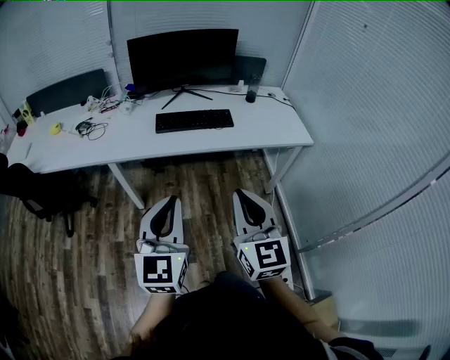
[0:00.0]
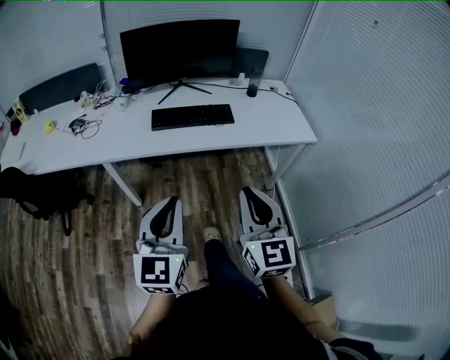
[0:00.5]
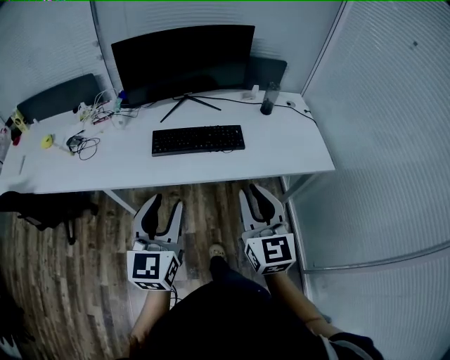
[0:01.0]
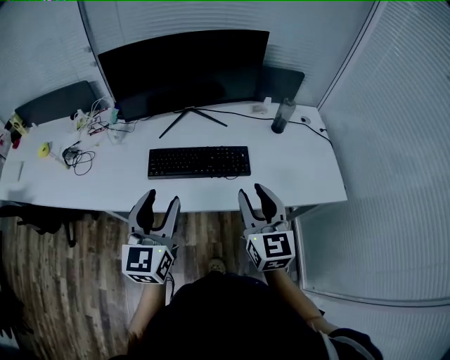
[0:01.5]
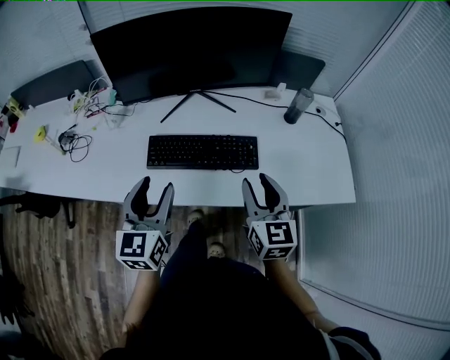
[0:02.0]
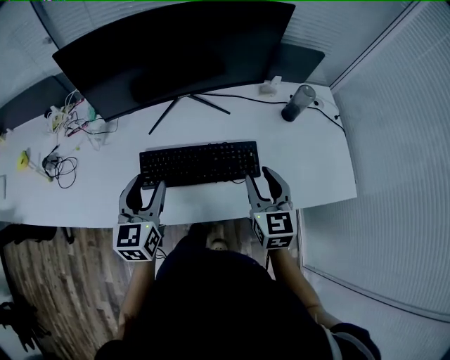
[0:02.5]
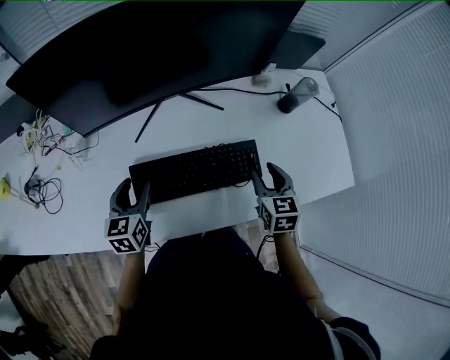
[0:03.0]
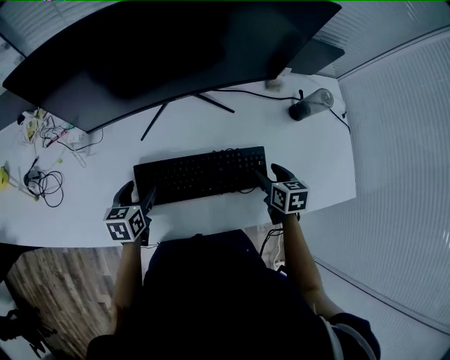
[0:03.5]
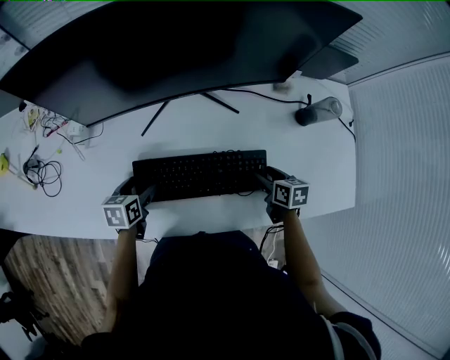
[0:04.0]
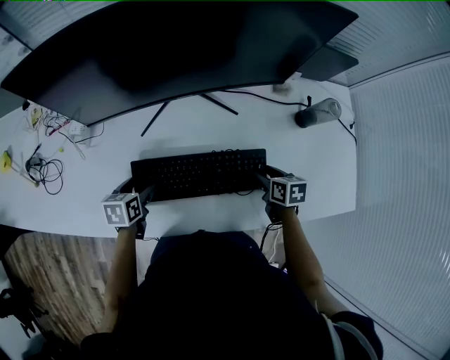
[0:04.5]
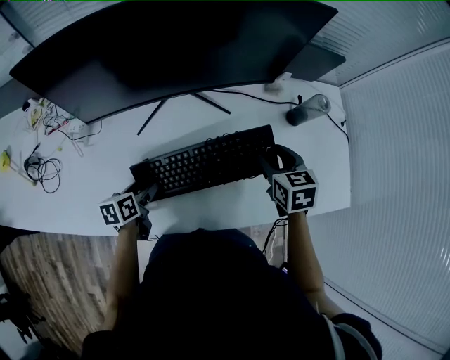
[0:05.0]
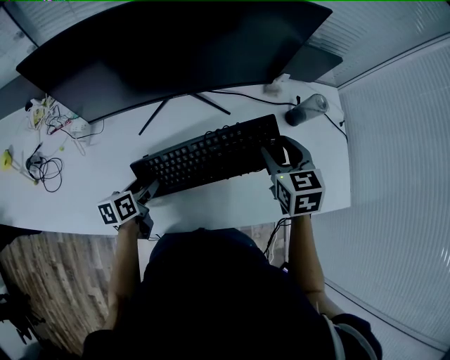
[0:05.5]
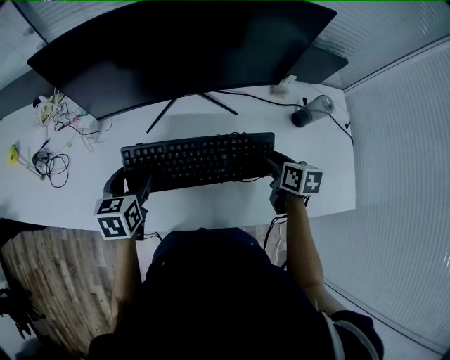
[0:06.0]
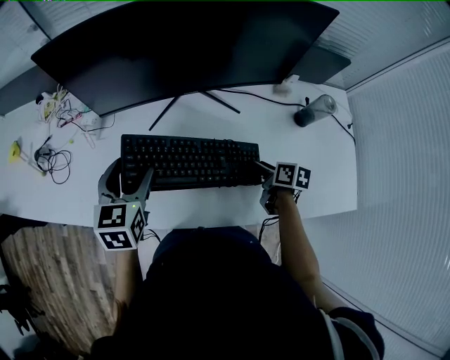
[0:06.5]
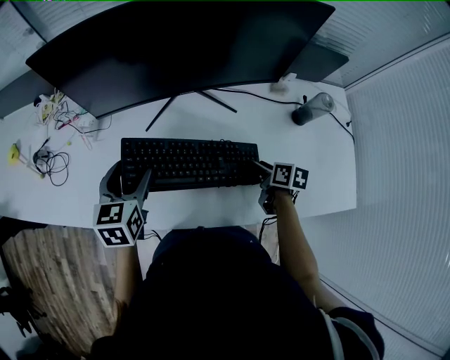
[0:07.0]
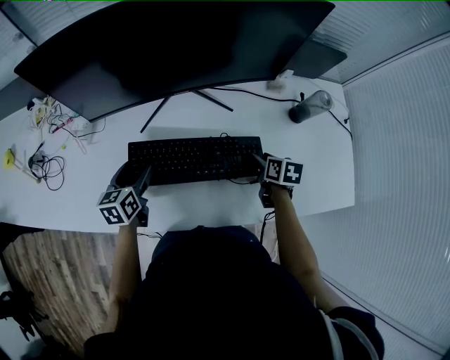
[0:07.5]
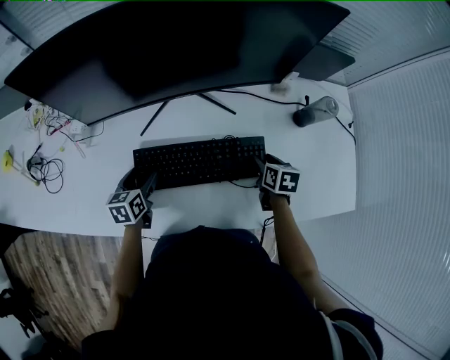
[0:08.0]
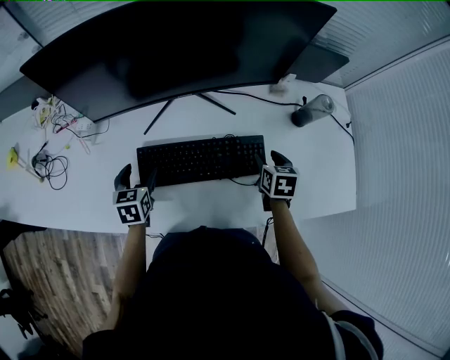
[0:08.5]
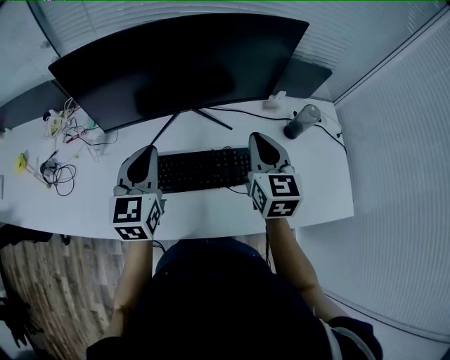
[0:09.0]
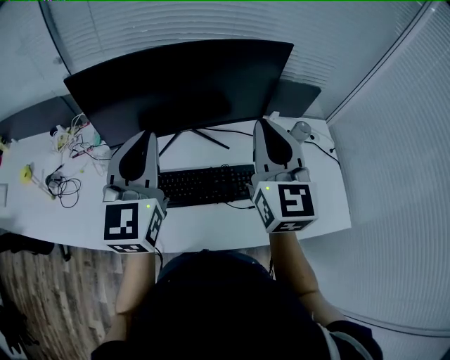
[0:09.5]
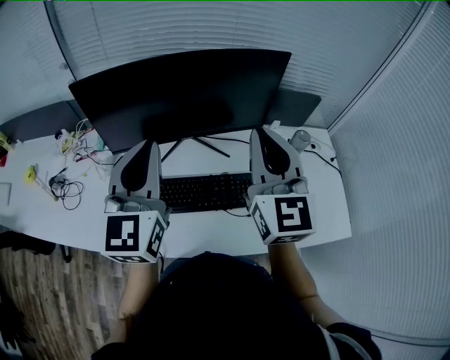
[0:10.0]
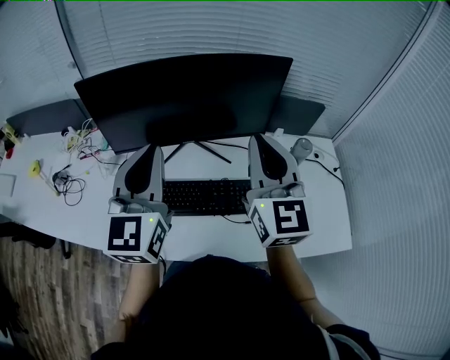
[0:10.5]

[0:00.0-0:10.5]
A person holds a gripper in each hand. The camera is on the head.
0:00.0 to 0:02.0: The two grippers travel together, forward, roughly 40 cm. The right gripper opens its fingers, while the left gripper opens up.
0:02.0 to 0:04.0: The right gripper is displaced downward and forward by some 30 cm, angles its fingers downward, by some 40 degrees, and opens, while the left gripper goes roughly 35 cm downward, forward and to the left, and tilts its fingers approximately 40 degrees downward.
0:04.0 to 0:06.5: The right gripper travels upward and back again, approximately 20 cm each way. The left gripper is displaced upward by some 20 cm, and rotates approximately 30 degrees.
0:06.5 to 0:08.5: The right gripper changes place by approximately 5 cm, and swivels roughly 40 degrees, while the left gripper is displaced downward by about 15 cm.
0:08.5 to 0:10.5: Both grippers move upward, roughly 40 cm. The right gripper angles its fingers upward, by about 60 degrees, and closes up. Meanwhile the left gripper tilts its fingers approximately 50 degrees upward, and closes its fingers.

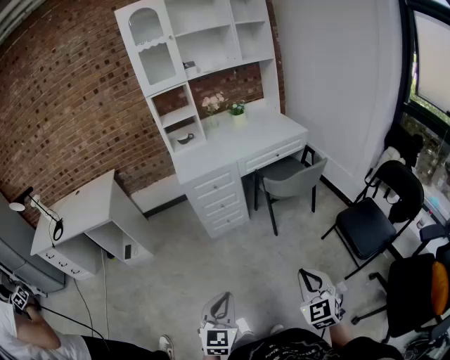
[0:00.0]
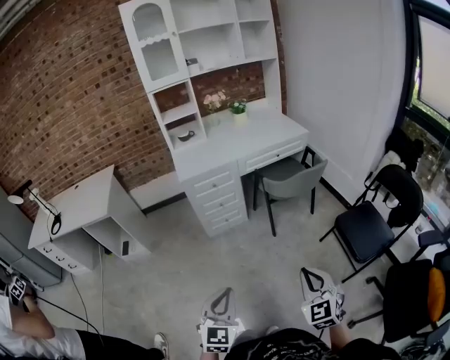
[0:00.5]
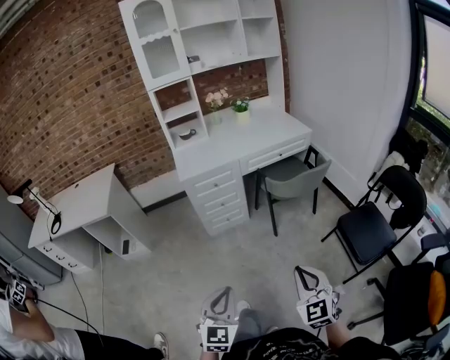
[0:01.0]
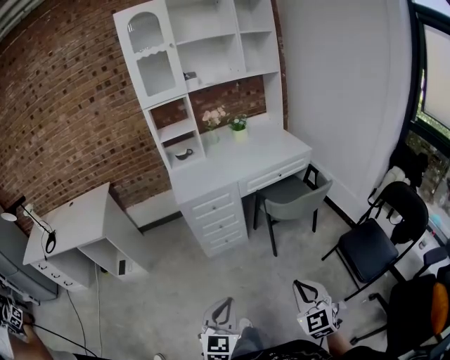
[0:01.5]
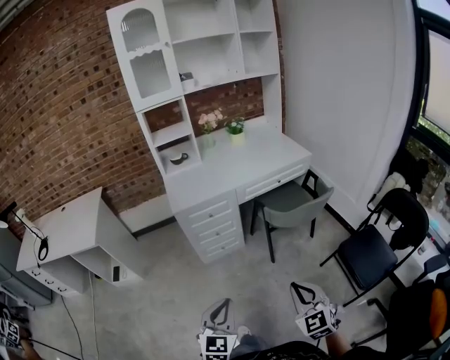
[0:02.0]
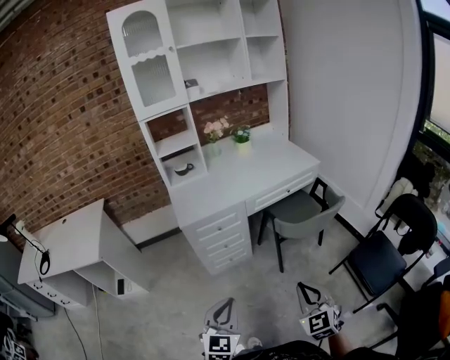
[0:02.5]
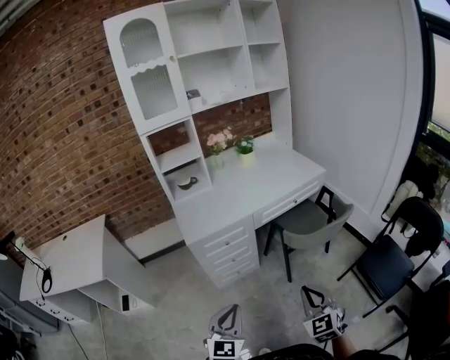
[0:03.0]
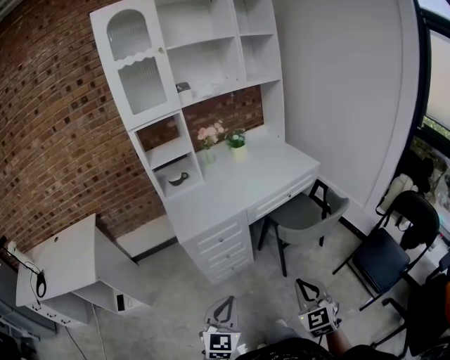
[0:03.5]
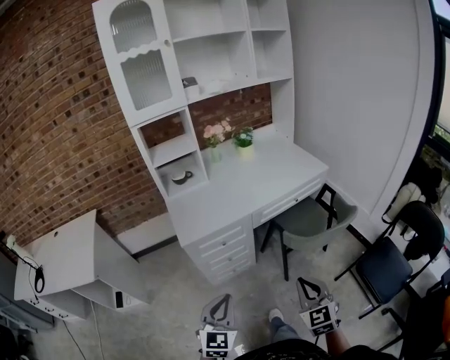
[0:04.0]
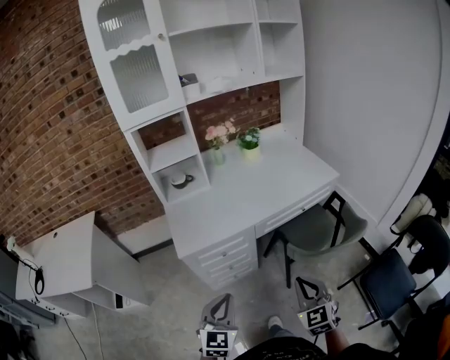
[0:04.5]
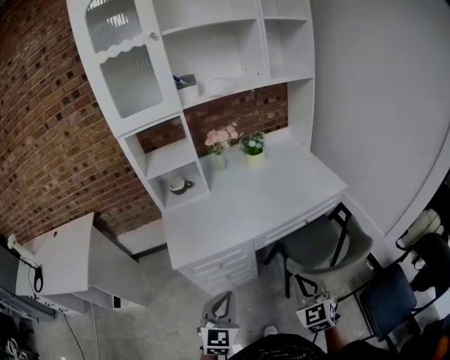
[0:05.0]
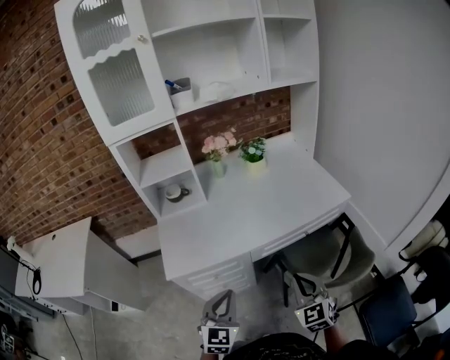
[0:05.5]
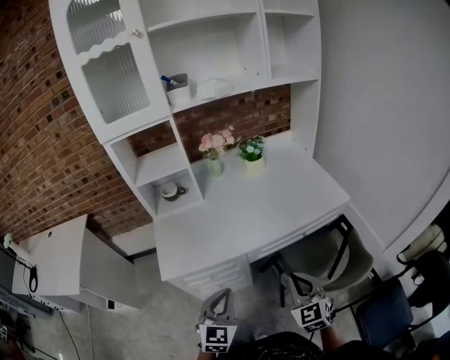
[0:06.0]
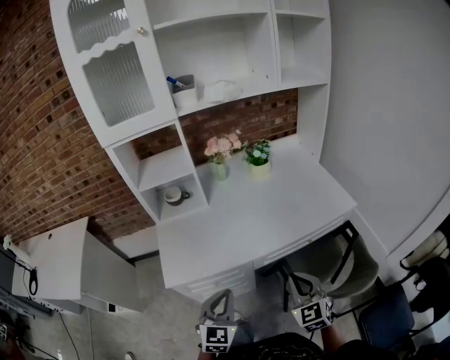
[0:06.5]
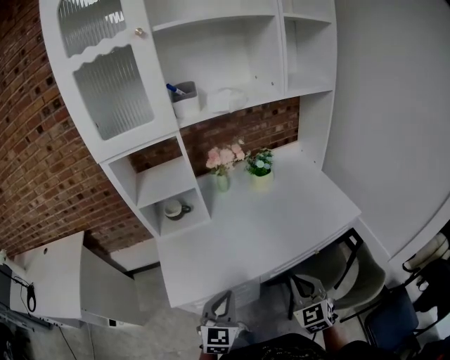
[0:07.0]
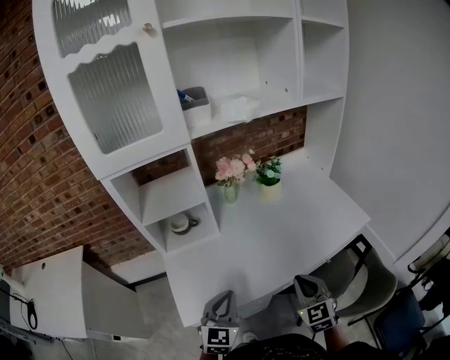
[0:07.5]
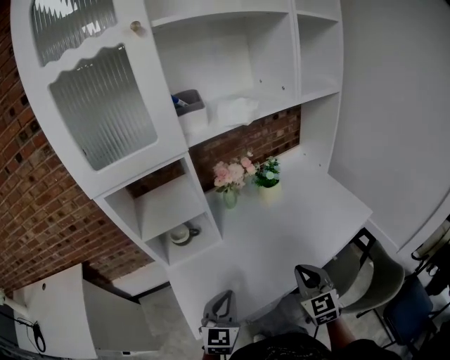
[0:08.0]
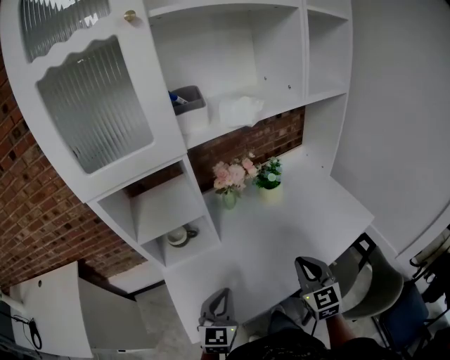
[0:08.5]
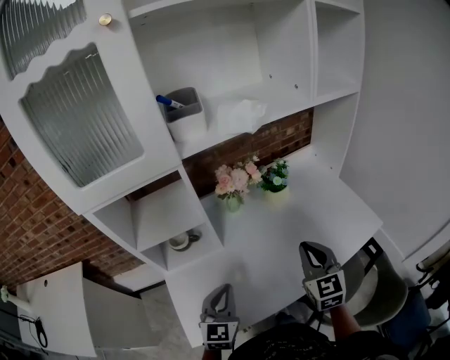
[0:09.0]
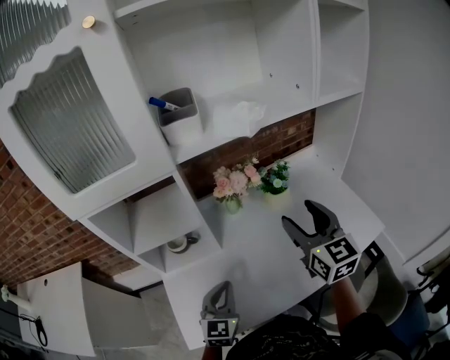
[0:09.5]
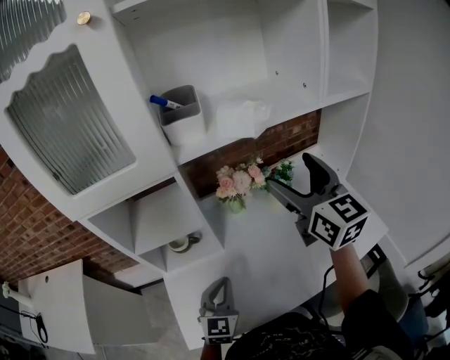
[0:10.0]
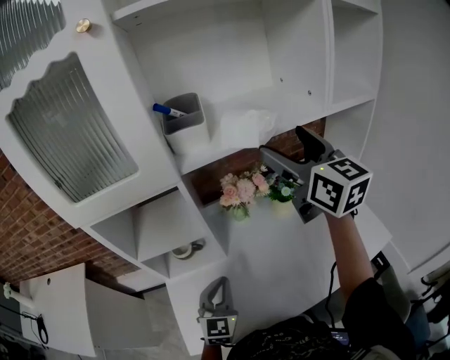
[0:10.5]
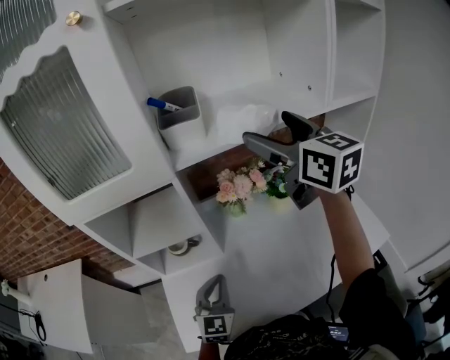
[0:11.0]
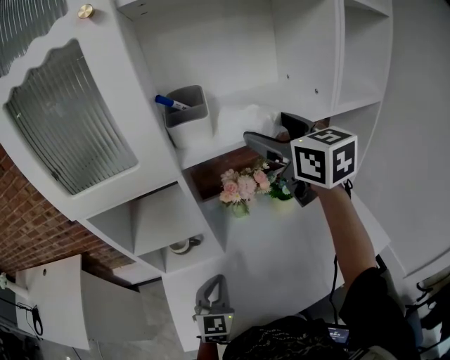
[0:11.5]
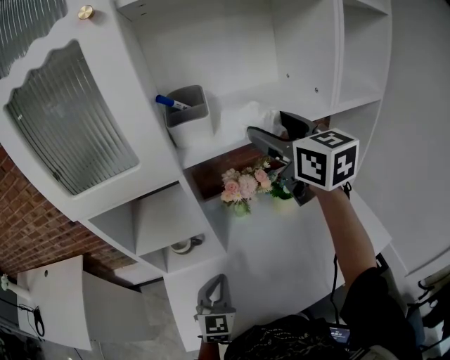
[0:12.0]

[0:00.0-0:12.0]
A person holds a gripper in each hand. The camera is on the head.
0:00.0 to 0:02.0: The two grippers go about 15 cm forward.
0:02.0 to 0:04.0: The left gripper travels forward and to the left by approximately 25 cm, while the right gripper shifts some 20 cm forward.
0:04.0 to 0:06.0: The right gripper moves forward, about 25 cm; the left gripper goes roughly 25 cm forward and to the right.
0:06.0 to 0:08.0: The grippers both shift forward and to the left by some 25 cm.
0:08.0 to 0:10.0: The right gripper travels upward and forward by approximately 35 cm, changes its angle by roughly 30 degrees, and opens its fingers, while the left gripper travels forward by some 10 cm.
0:10.0 to 0:12.0: The right gripper travels forward and upward by roughly 10 cm.

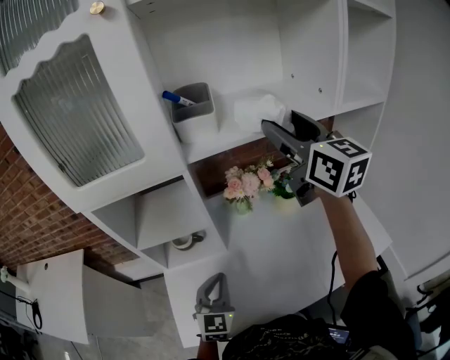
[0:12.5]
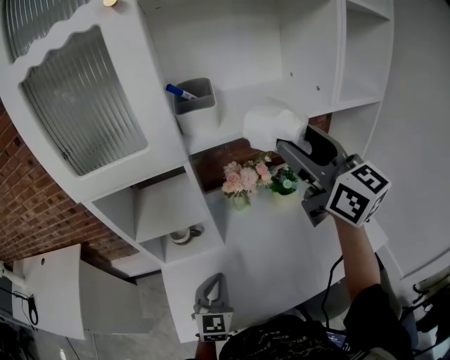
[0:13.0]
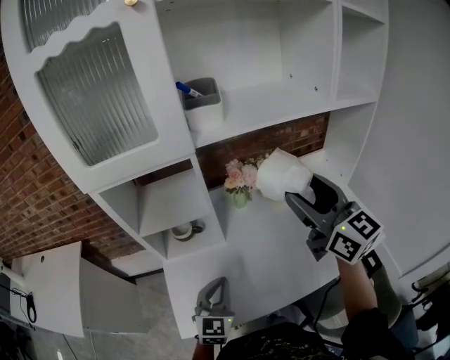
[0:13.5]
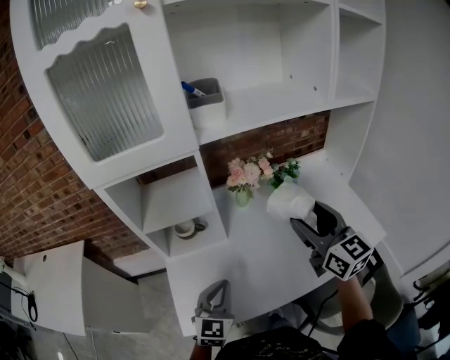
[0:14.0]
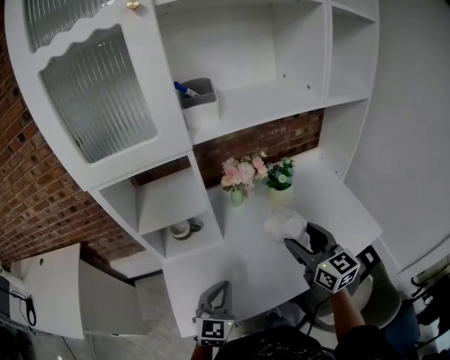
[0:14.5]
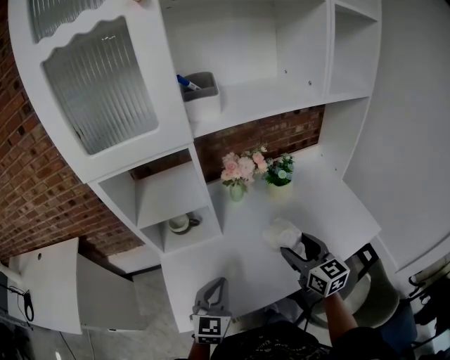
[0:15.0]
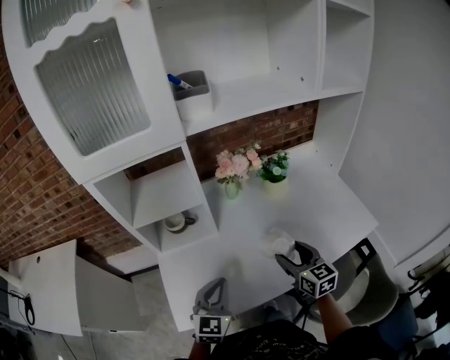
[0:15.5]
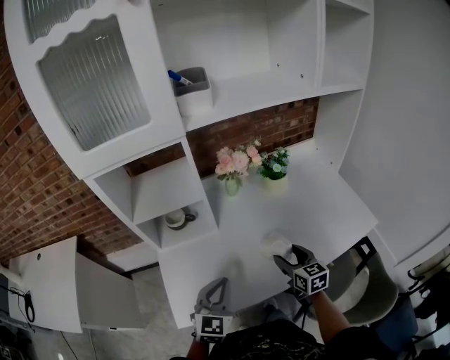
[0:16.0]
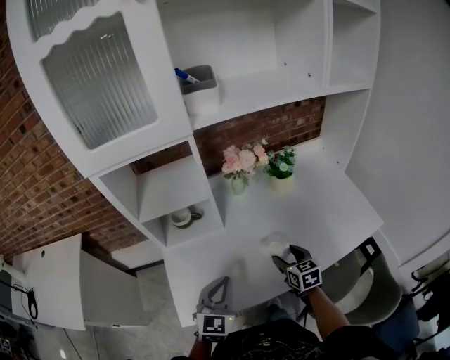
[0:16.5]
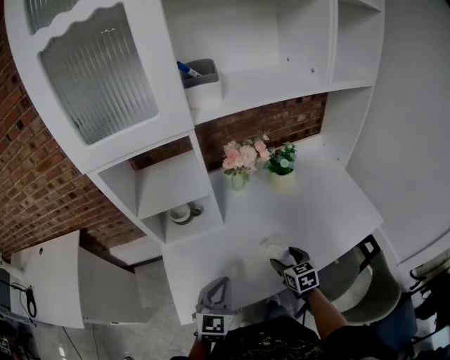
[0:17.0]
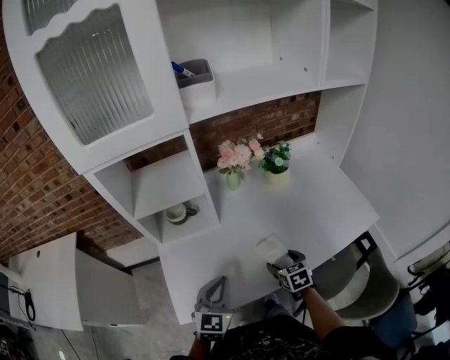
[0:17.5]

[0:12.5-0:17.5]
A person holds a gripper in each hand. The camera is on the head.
0:12.5 to 0:15.0: The right gripper moves downward and backward, approximately 40 cm. Meanwhile the left gripper is displaced backward by some 10 cm.
0:15.0 to 0:17.5: The right gripper goes about 20 cm downward, and tilts its fingers approximately 30 degrees downward.
